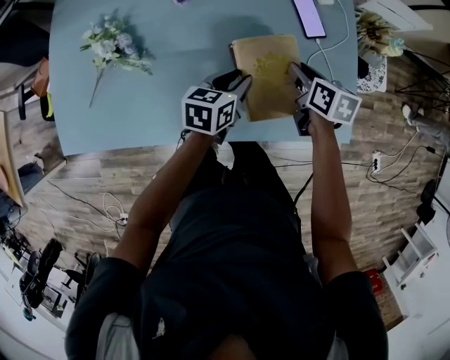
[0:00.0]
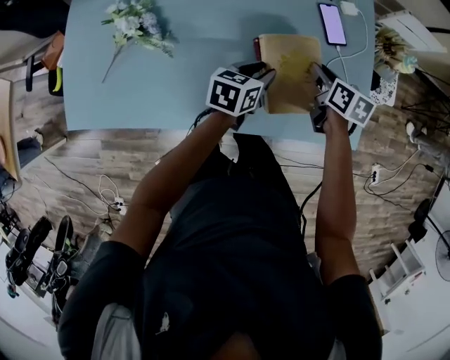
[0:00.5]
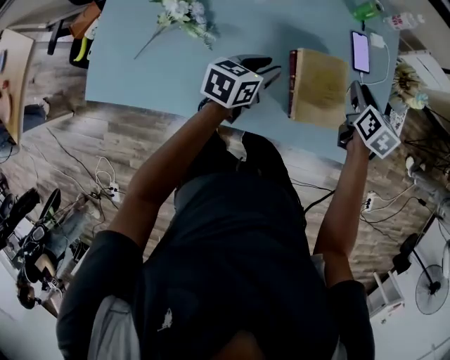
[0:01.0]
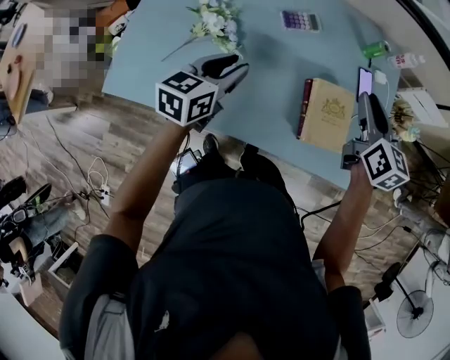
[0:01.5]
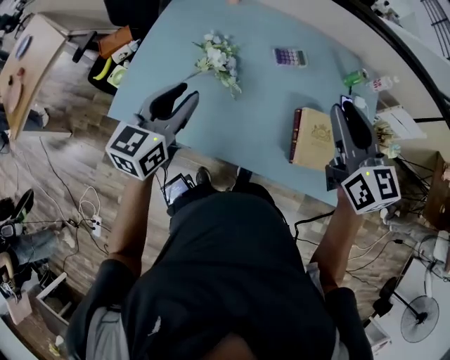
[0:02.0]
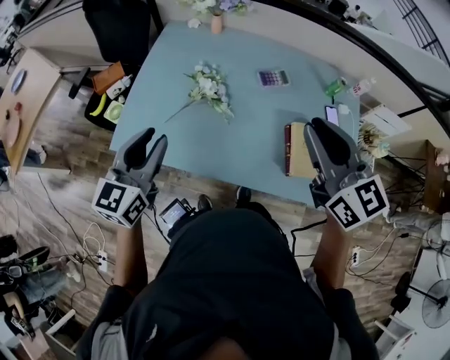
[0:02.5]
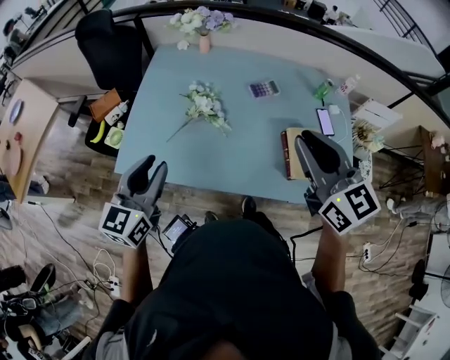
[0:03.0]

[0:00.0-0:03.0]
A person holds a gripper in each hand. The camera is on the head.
0:00.0 to 0:01.5: The right gripper moves upward and to the left, about 25 cm, and changes its angle by about 30 degrees. Meanwhile the left gripper moves to the left and upward, some 30 cm, and changes its angle by some 20 degrees.
0:01.5 to 0:03.0: Both grippers travel together to the left, upward and backward, some 30 cm. The right gripper swivels about 30 degrees, while the left gripper turns by about 20 degrees.

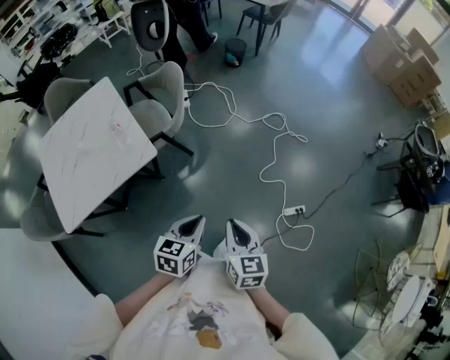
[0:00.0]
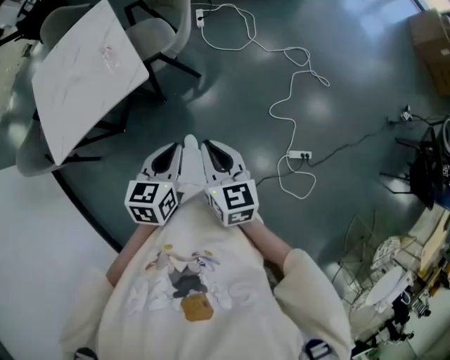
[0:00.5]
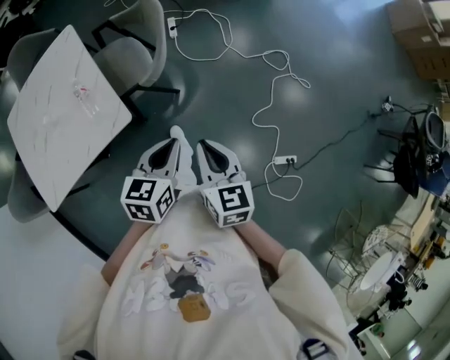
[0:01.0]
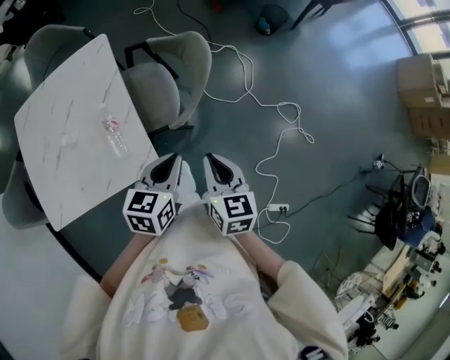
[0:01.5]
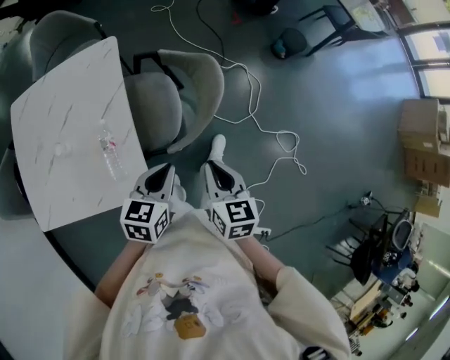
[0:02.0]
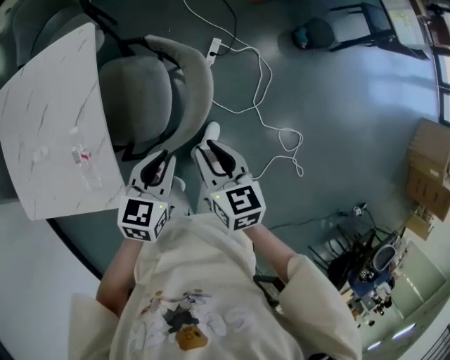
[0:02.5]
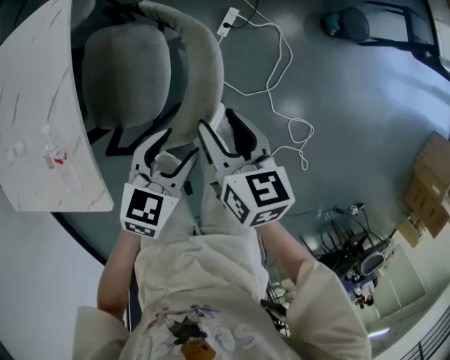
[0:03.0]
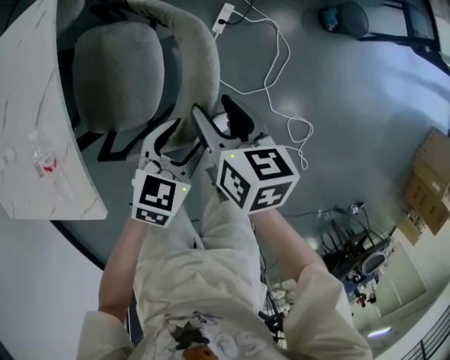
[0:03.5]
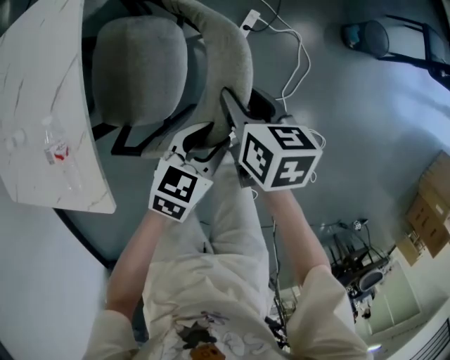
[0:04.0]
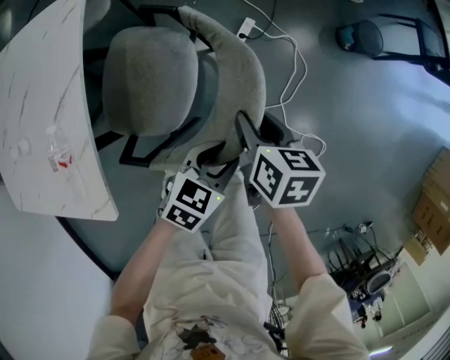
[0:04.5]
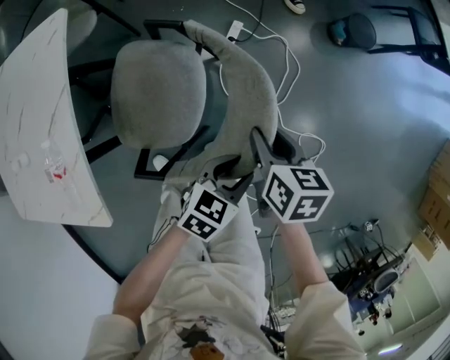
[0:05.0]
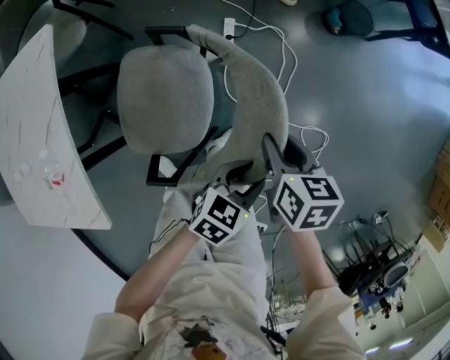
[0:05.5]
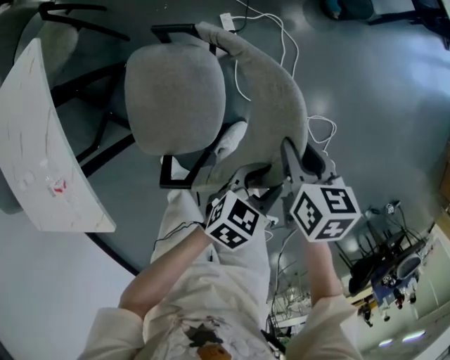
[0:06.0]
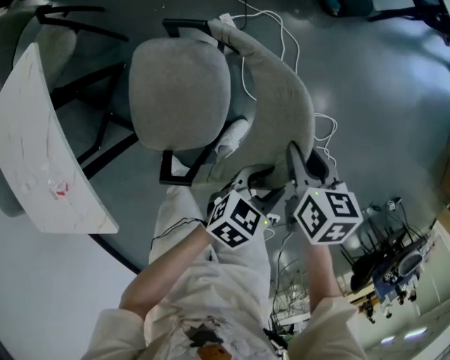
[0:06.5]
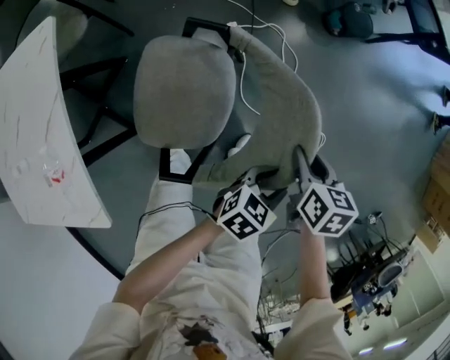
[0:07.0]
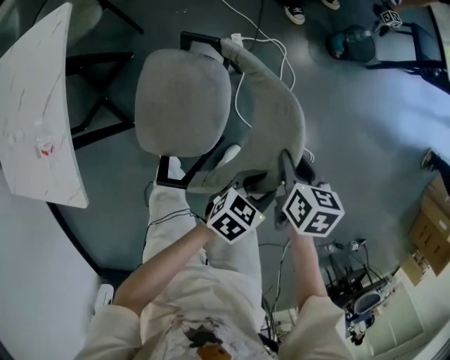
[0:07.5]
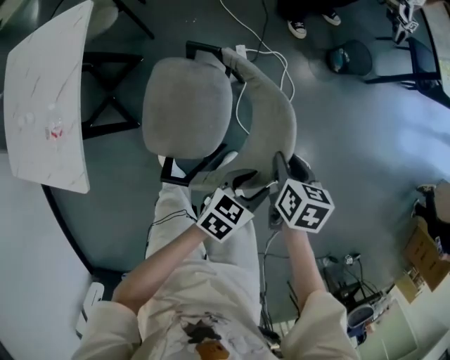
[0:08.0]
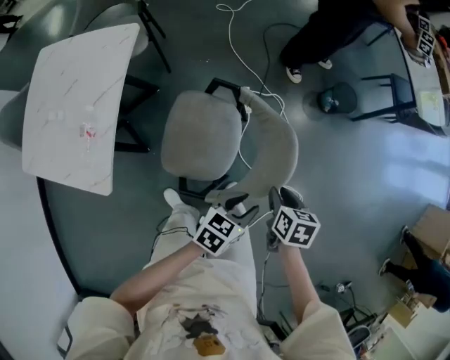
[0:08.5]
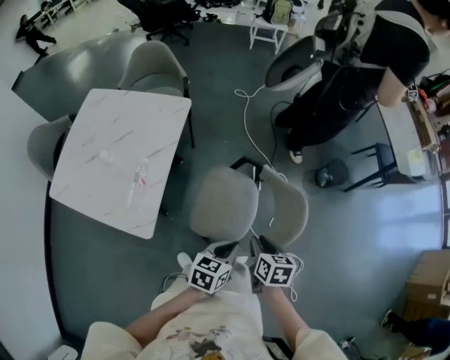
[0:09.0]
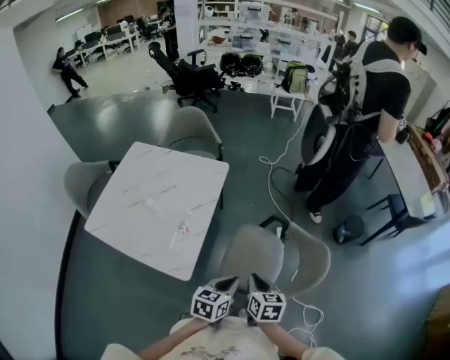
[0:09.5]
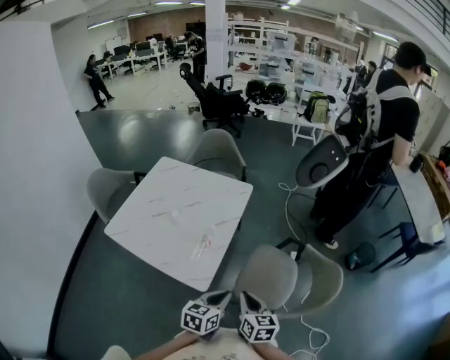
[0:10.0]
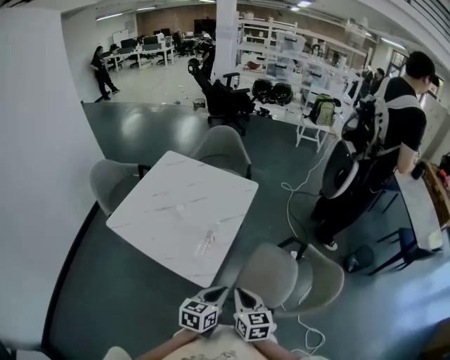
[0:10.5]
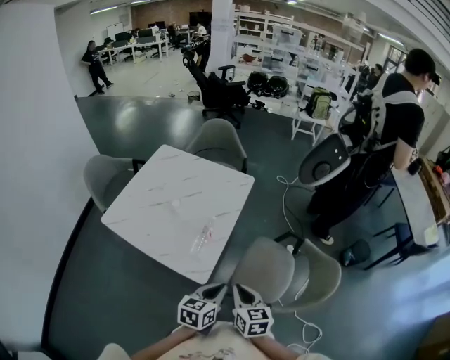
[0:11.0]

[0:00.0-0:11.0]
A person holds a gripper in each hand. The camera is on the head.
0:00.0 to 0:02.0: The pair of grippers is taken forward, approximately 60 cm. The left gripper swivels roughly 20 degrees; the right gripper swivels approximately 30 degrees.
0:02.0 to 0:03.5: The right gripper travels forward and downward by approximately 30 cm, turns by about 20 degrees, and opens. The left gripper shifts about 35 cm downward, forward and to the right, and opens its fingers.
0:03.5 to 0:05.5: The two grippers go approximately 20 cm to the right. The right gripper closes its fingers; the left gripper rotates about 20 degrees, and closes up.
0:05.5 to 0:07.5: The grippers both shift to the right by about 10 cm.
0:07.5 to 0:09.0: The left gripper travels to the left, upward and backward by some 35 cm, changes its angle by approximately 30 degrees, and closes. Meanwhile the right gripper moves to the left, backward and upward, some 30 cm.
0:09.0 to 0:11.0: The grippers both shift to the left by about 25 cm. The right gripper turns by some 30 degrees, and closes its fingers. Meanwhile the left gripper swivels roughly 20 degrees.

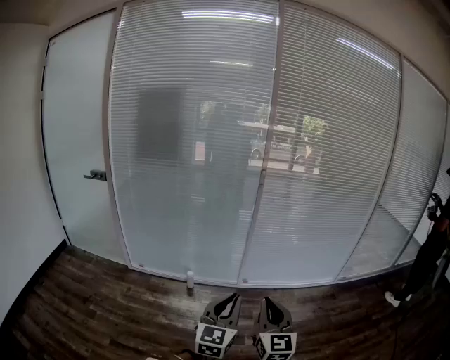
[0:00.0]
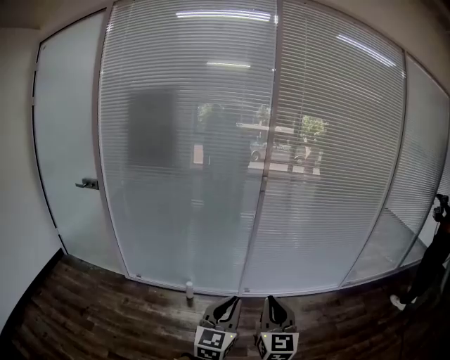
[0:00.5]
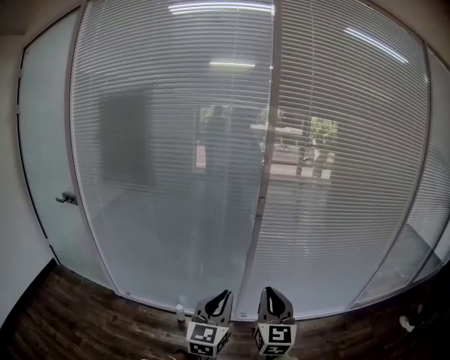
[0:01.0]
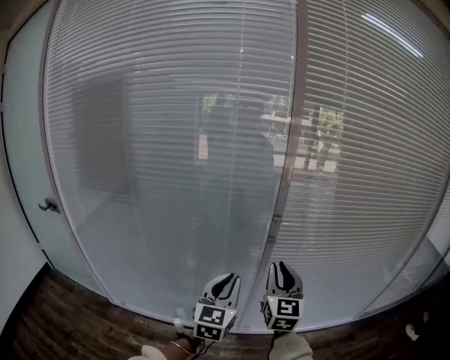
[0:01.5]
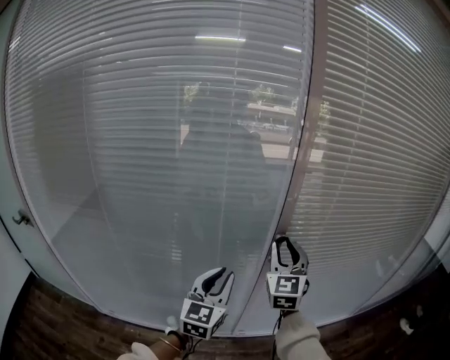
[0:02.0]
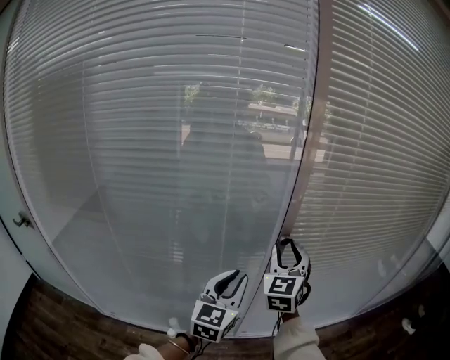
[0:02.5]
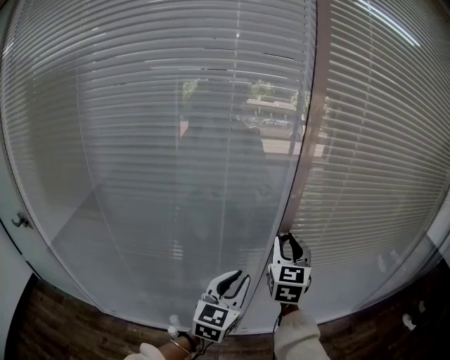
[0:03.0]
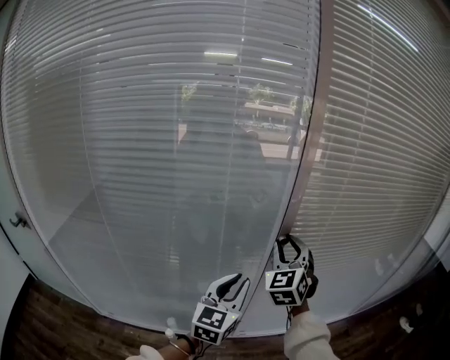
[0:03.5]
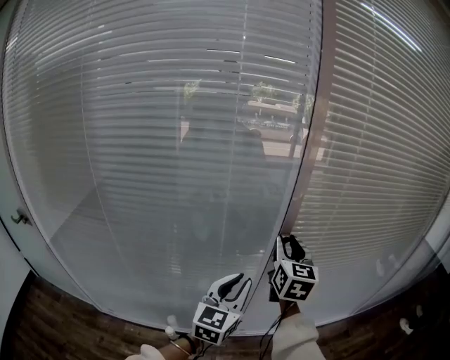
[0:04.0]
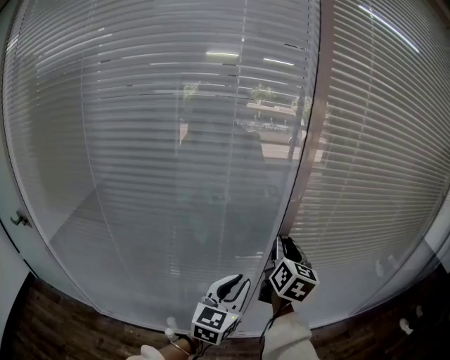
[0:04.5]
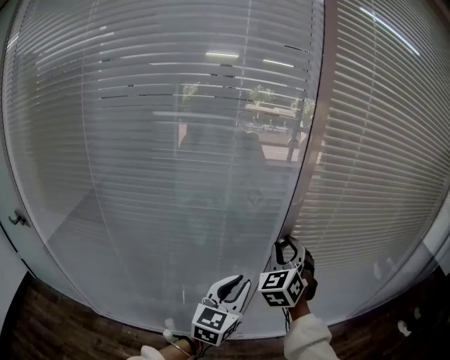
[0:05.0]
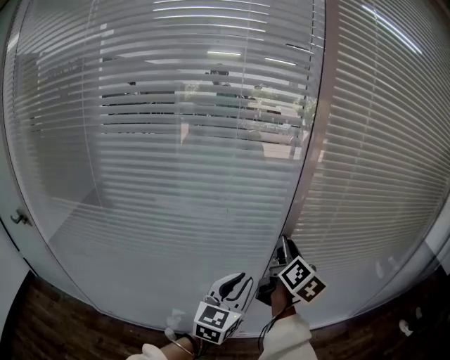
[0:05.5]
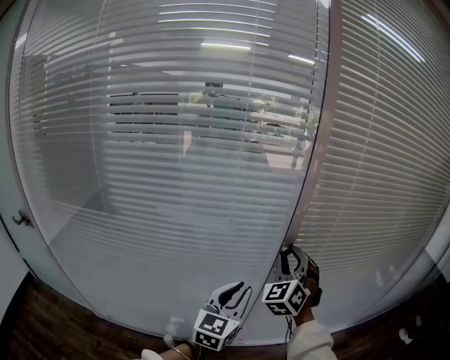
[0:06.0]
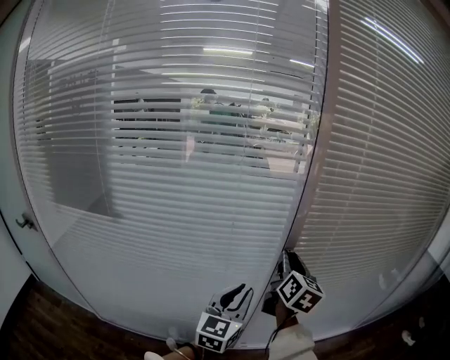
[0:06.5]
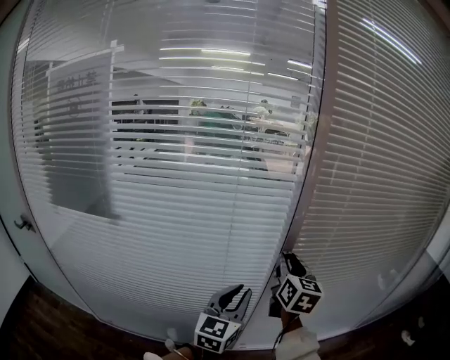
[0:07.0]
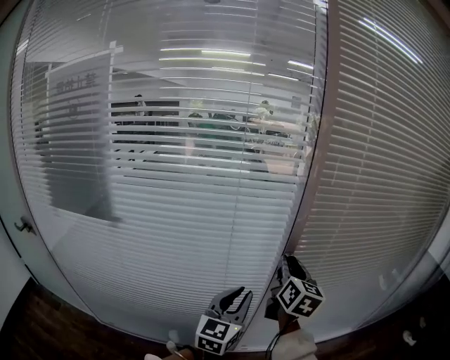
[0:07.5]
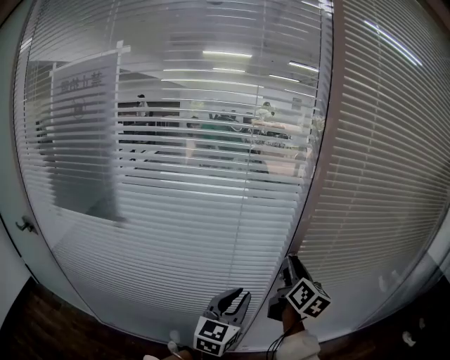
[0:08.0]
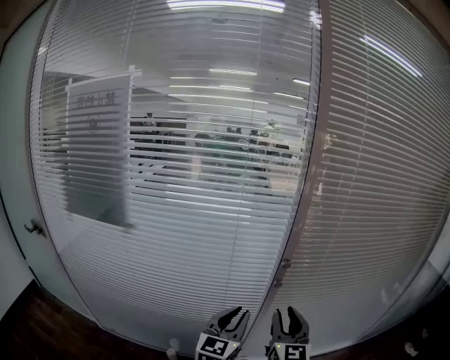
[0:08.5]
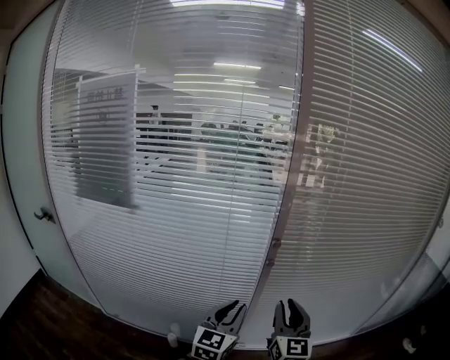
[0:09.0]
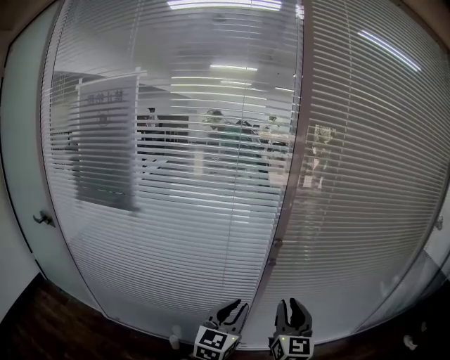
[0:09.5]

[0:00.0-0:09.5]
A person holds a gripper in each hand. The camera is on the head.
0:00.0 to 0:02.0: Both grippers are carried forward, some 80 cm. The right gripper opens up.
0:02.0 to 0:04.0: The right gripper changes its angle by approximately 20 degrees.
0:04.0 to 0:05.5: The right gripper rotates approximately 30 degrees.
0:07.5 to 0:09.5: The right gripper heads backward, covering roughly 20 cm, and rotates roughly 20 degrees. Meanwhile the left gripper moves backward, approximately 10 cm.

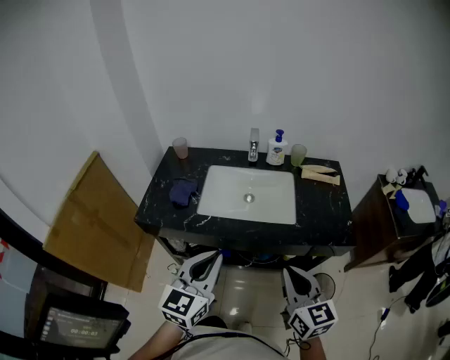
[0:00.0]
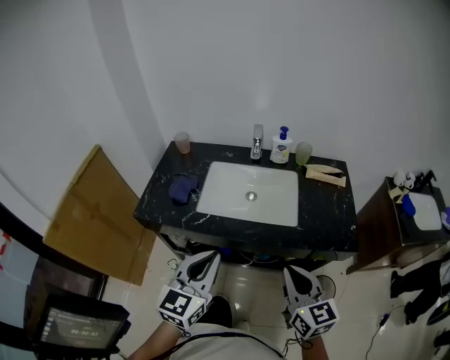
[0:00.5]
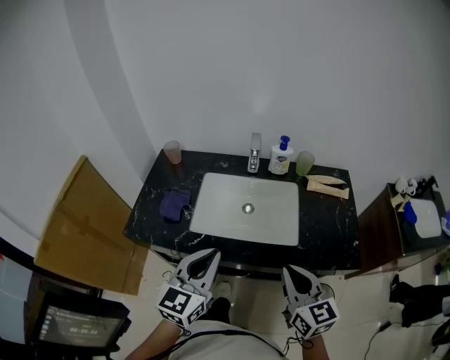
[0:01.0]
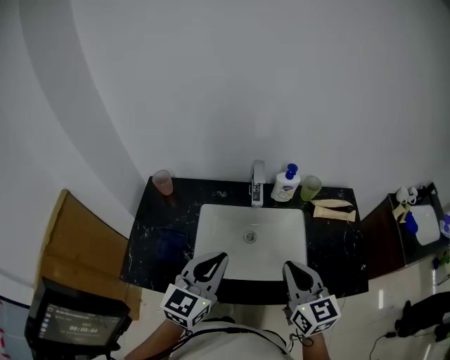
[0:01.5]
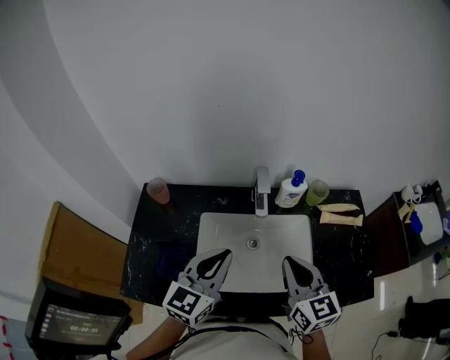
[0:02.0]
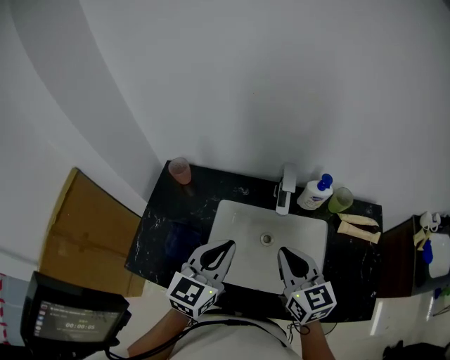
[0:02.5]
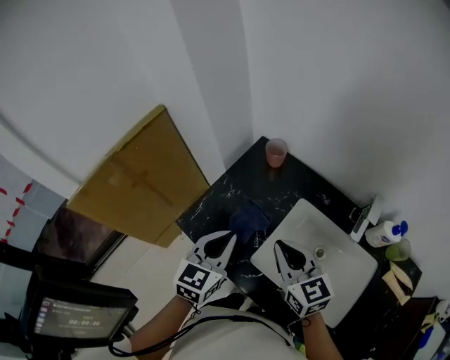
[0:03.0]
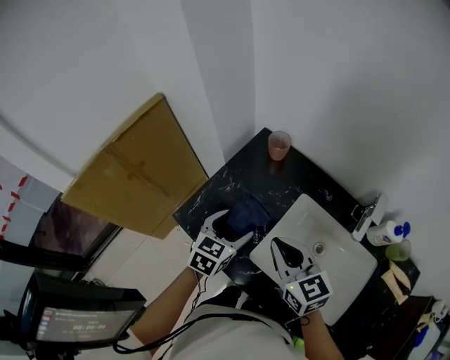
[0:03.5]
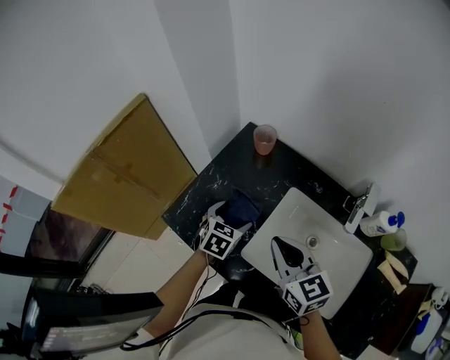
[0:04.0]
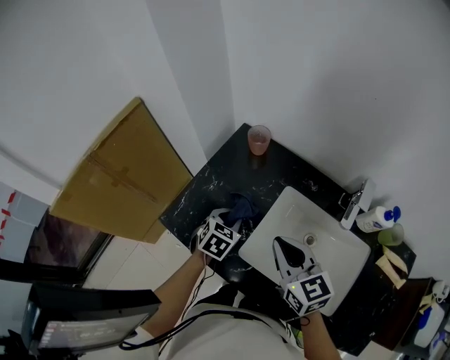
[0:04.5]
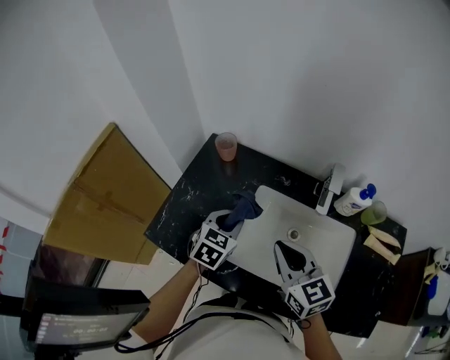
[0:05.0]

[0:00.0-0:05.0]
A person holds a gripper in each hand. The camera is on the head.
0:00.0 to 0:02.5: Both grippers move forward, roughly 35 cm.
0:02.5 to 0:05.0: The left gripper is displaced downward by roughly 15 cm, rotates about 30 degrees, and opens and closes again.
